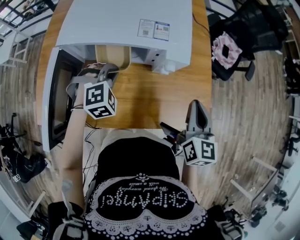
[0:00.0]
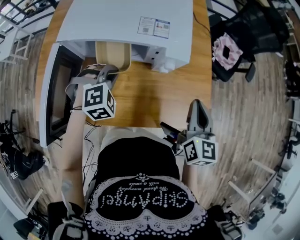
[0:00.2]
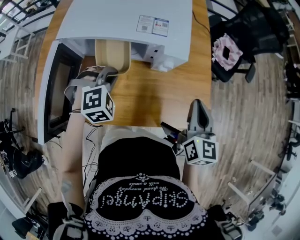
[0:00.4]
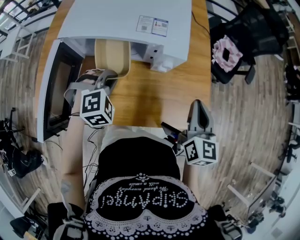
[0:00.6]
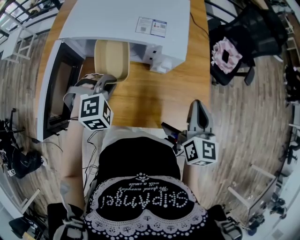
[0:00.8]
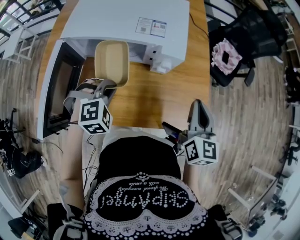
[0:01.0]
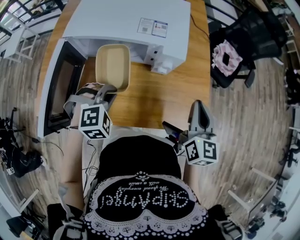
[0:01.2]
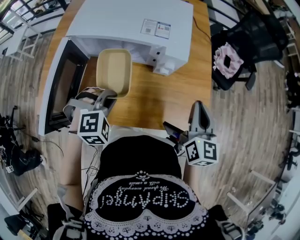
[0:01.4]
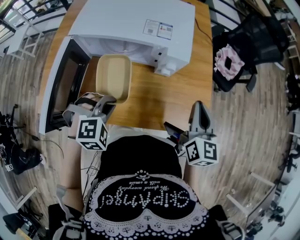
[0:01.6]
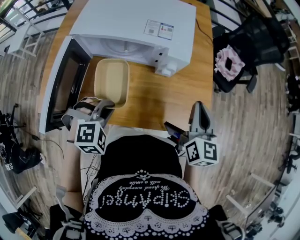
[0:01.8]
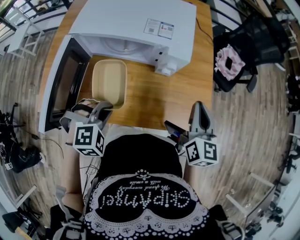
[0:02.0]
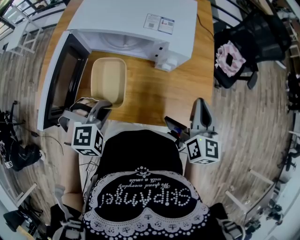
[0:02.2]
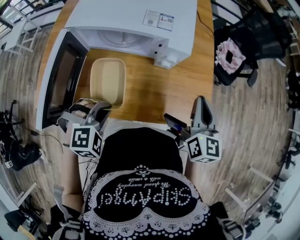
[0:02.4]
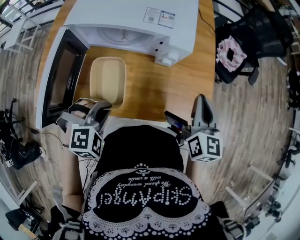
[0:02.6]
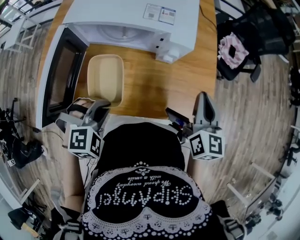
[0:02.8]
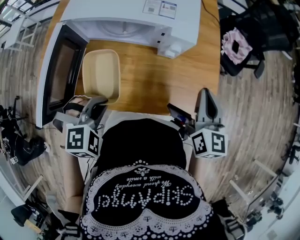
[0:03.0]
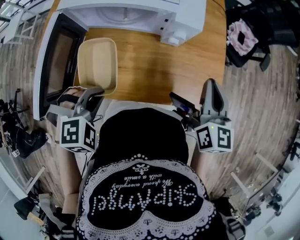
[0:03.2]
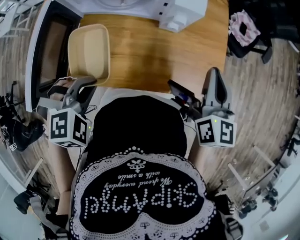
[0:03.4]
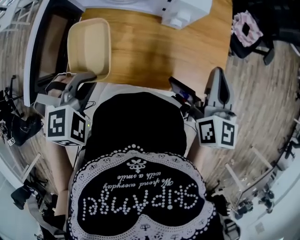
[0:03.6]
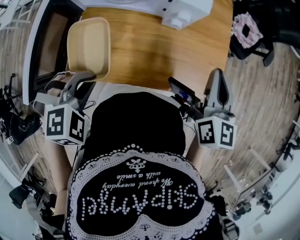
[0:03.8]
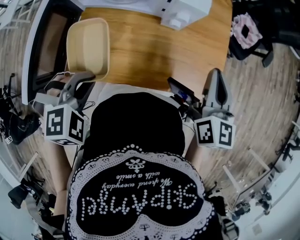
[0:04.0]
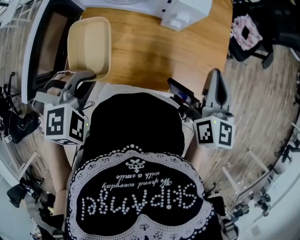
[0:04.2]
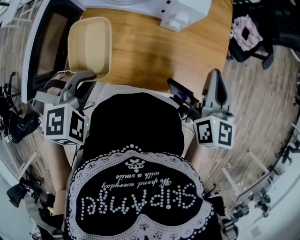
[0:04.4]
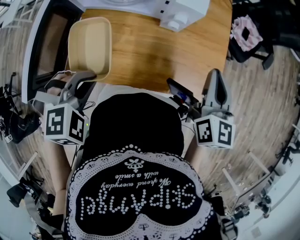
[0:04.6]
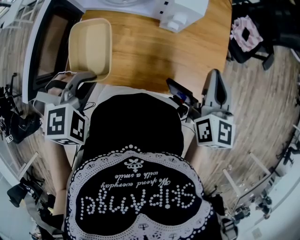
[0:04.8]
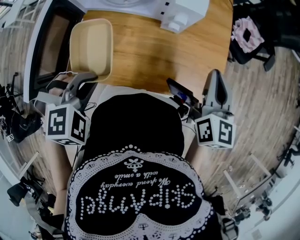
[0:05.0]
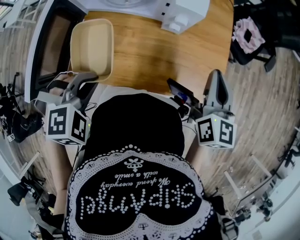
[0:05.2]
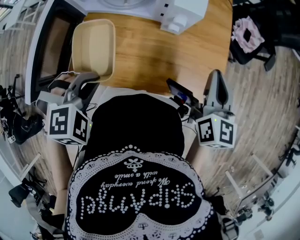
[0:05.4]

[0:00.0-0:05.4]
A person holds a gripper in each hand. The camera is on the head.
0:00.0 to 0:01.4: The left gripper travels backward by approximately 10 cm.
0:01.4 to 0:02.8: The left gripper moves backward, about 5 cm.
0:02.8 to 0:05.4: The grippers make only small movements.

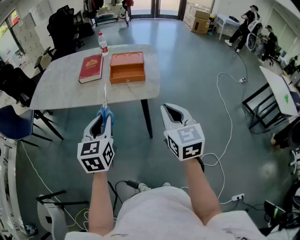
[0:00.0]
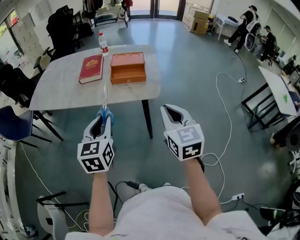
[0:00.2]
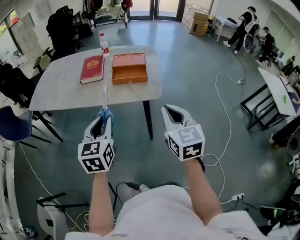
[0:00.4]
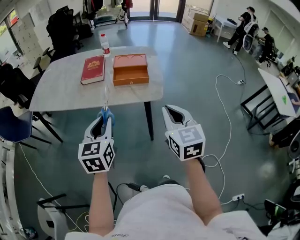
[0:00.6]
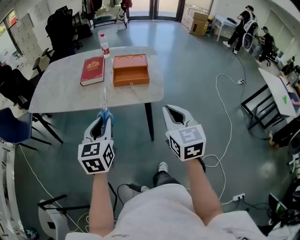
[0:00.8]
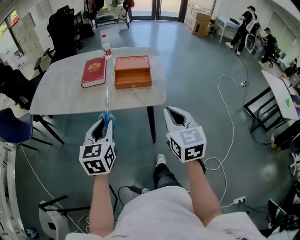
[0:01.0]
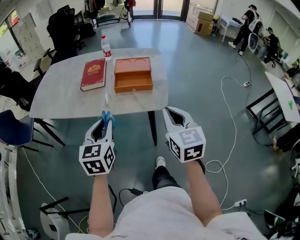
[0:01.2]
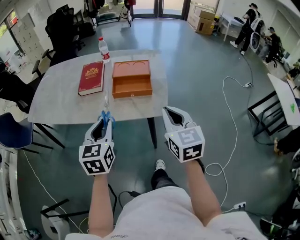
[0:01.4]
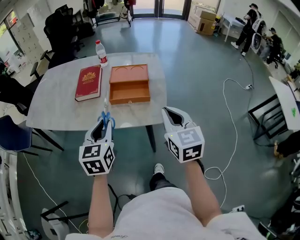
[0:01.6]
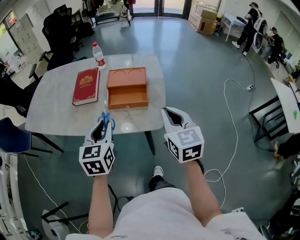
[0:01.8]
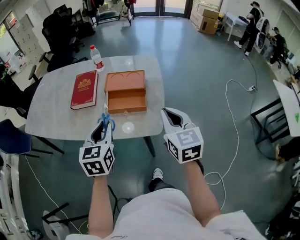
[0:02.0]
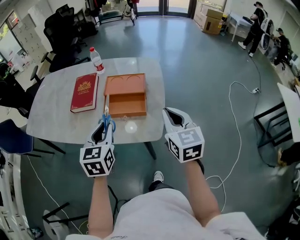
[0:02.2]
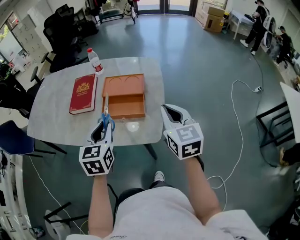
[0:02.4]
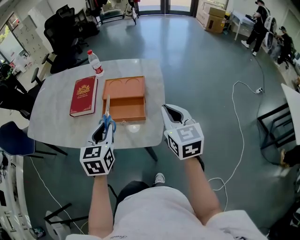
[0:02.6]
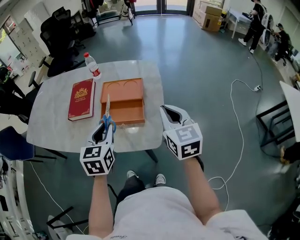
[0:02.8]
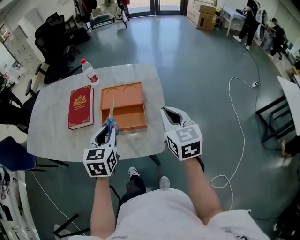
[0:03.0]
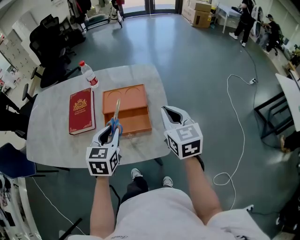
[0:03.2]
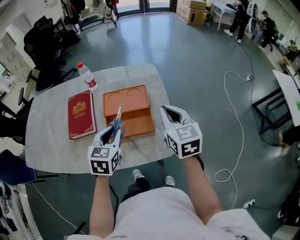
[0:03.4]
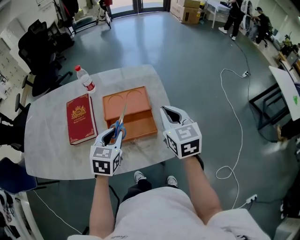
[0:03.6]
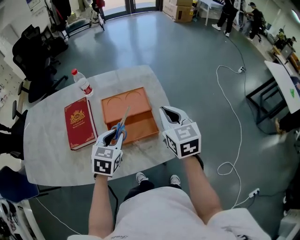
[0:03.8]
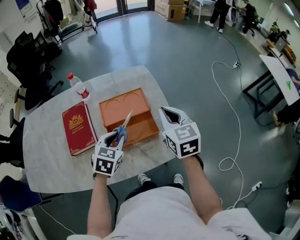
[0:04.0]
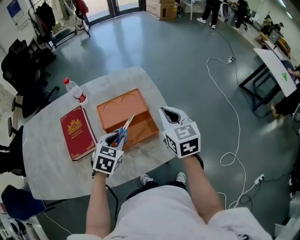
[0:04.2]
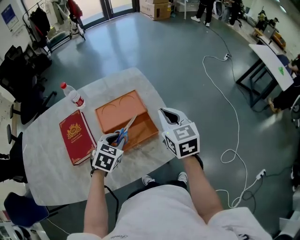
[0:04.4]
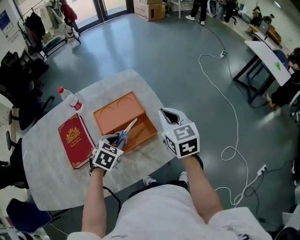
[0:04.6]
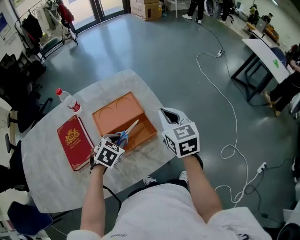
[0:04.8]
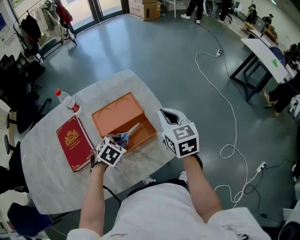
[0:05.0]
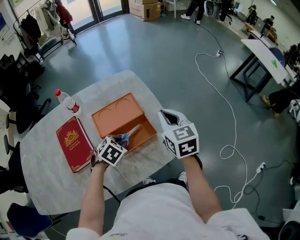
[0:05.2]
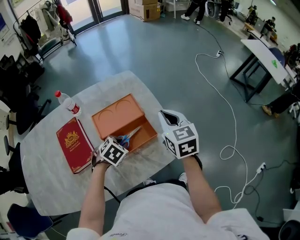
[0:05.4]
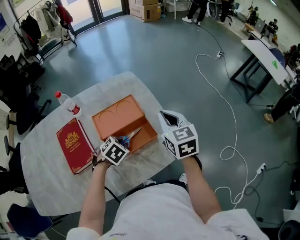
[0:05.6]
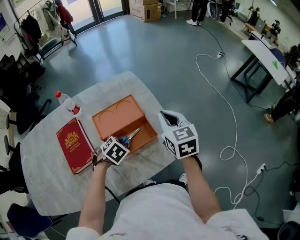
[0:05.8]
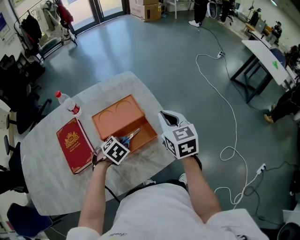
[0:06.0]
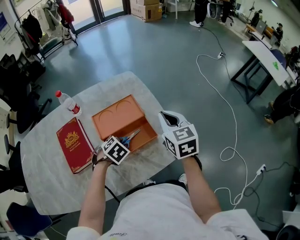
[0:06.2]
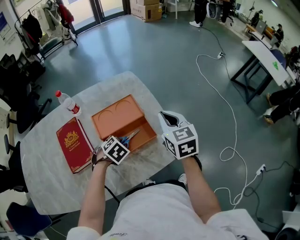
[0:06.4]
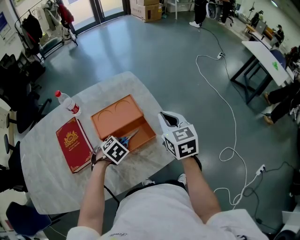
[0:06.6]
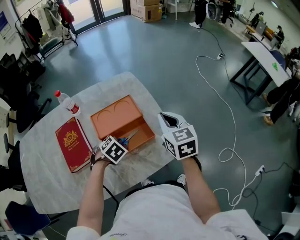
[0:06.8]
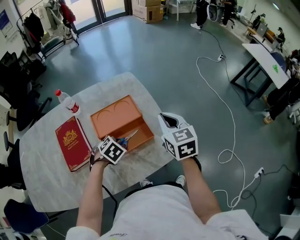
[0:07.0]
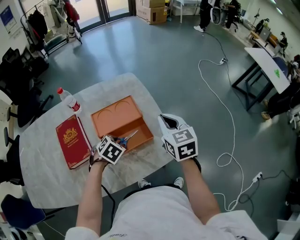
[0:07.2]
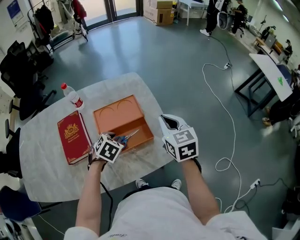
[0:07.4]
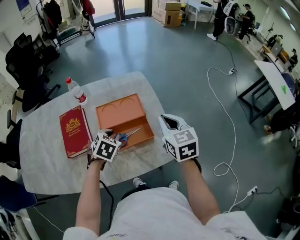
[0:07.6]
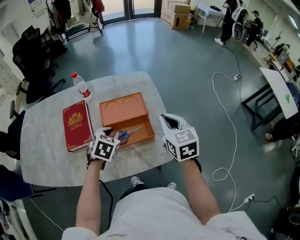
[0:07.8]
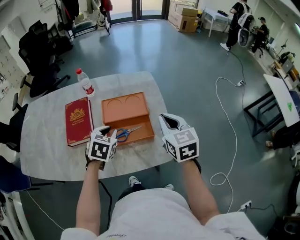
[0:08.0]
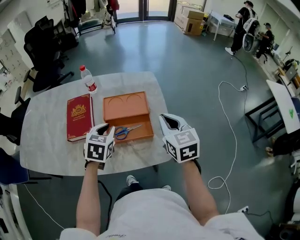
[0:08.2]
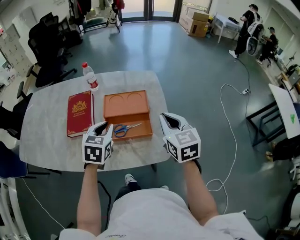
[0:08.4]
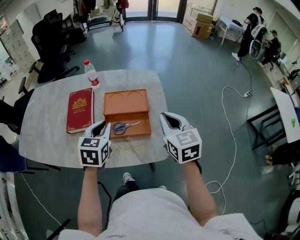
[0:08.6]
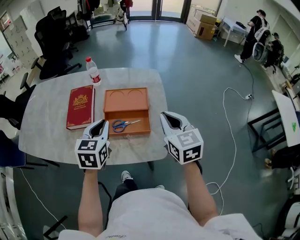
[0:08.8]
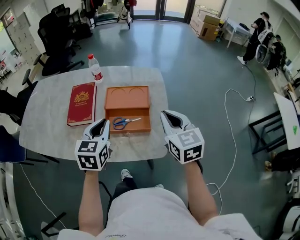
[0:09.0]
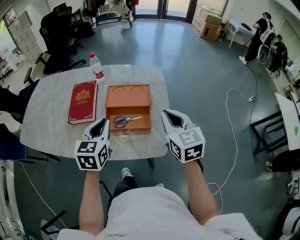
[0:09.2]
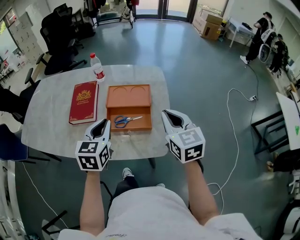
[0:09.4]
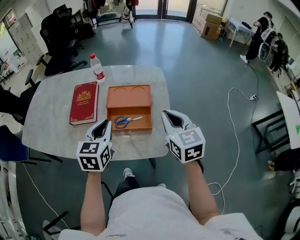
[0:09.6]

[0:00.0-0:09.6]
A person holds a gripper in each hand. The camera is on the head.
0:00.0 to 0:01.6: The grippers both shift forward by approximately 15 cm.
0:01.6 to 0:03.2: The grippers both shift forward by approximately 20 cm.
0:03.2 to 0:04.8: The left gripper travels downward by approximately 10 cm, and swivels some 50 degrees. Meanwhile the right gripper swivels approximately 20 degrees.
0:04.8 to 0:06.4: The grippers move only a little.
0:06.4 to 0:08.0: The left gripper is displaced upward by some 10 cm, and turns by about 50 degrees.
0:08.0 to 0:09.6: The left gripper goes about 10 cm upward and backward, and changes its angle by roughly 30 degrees.

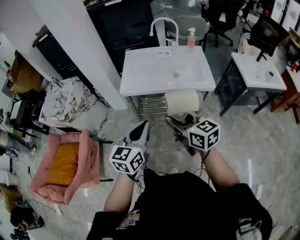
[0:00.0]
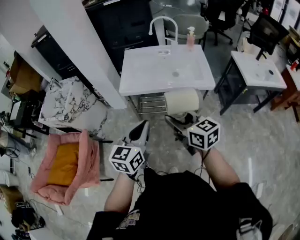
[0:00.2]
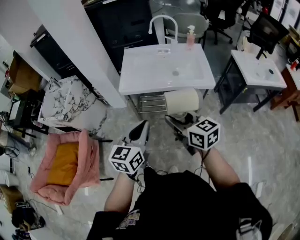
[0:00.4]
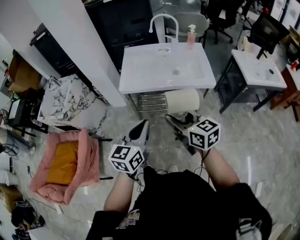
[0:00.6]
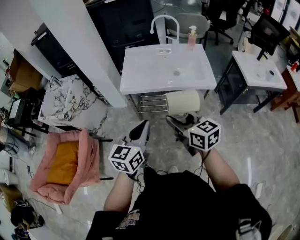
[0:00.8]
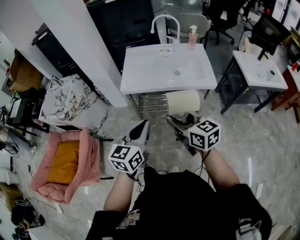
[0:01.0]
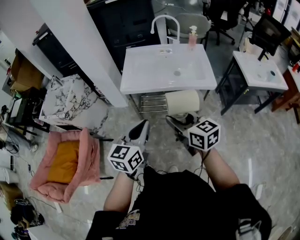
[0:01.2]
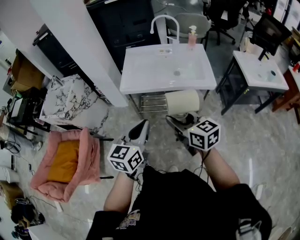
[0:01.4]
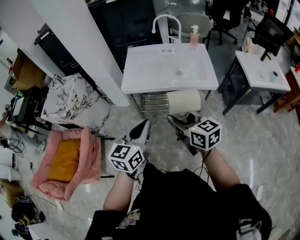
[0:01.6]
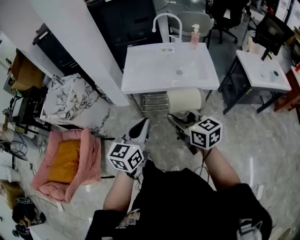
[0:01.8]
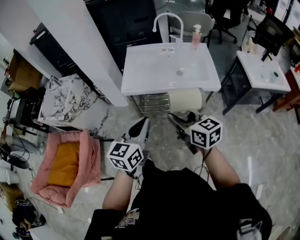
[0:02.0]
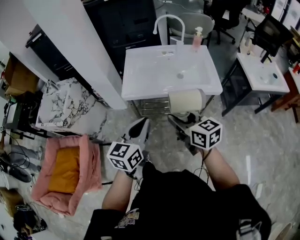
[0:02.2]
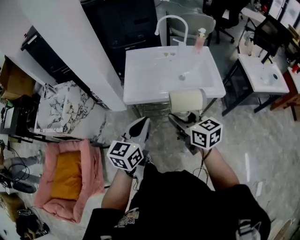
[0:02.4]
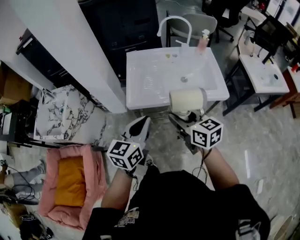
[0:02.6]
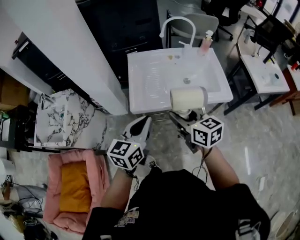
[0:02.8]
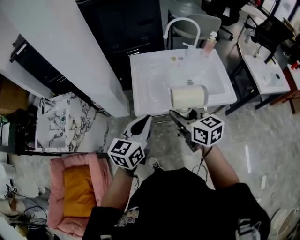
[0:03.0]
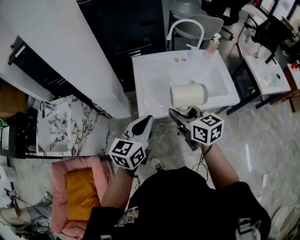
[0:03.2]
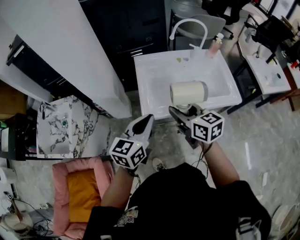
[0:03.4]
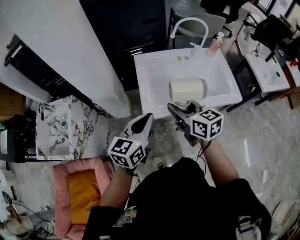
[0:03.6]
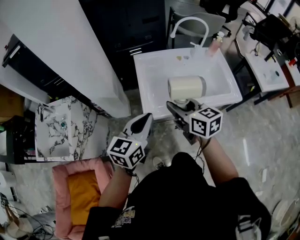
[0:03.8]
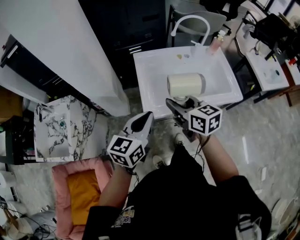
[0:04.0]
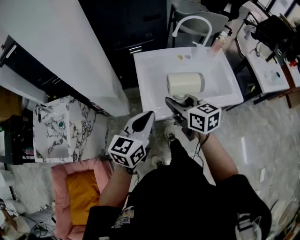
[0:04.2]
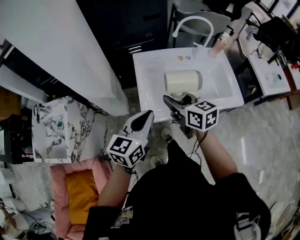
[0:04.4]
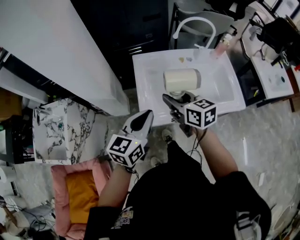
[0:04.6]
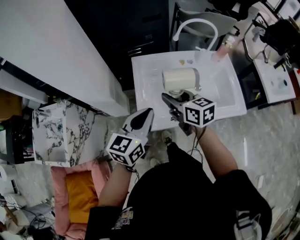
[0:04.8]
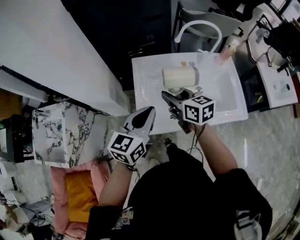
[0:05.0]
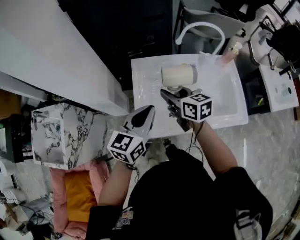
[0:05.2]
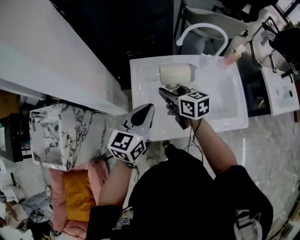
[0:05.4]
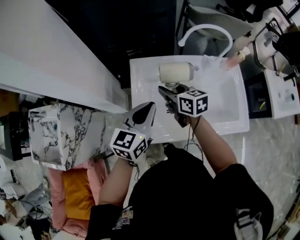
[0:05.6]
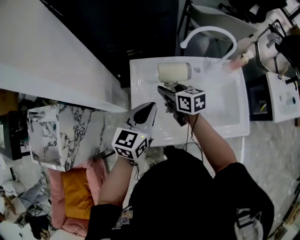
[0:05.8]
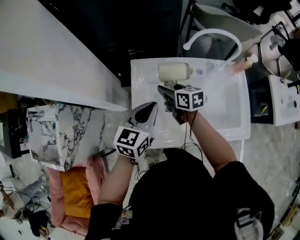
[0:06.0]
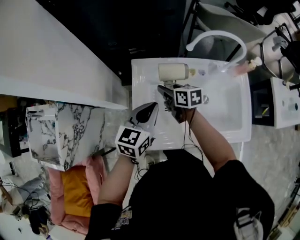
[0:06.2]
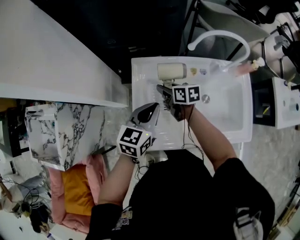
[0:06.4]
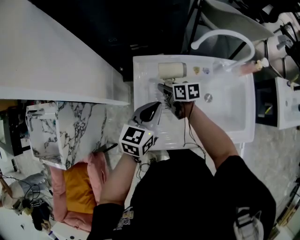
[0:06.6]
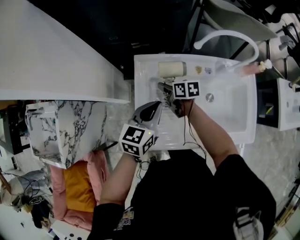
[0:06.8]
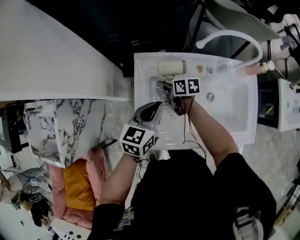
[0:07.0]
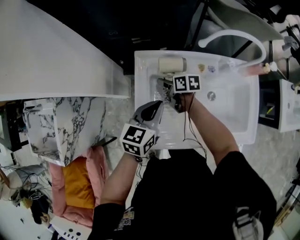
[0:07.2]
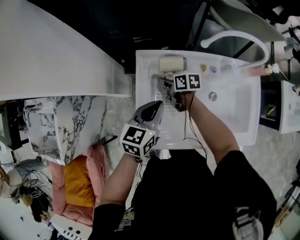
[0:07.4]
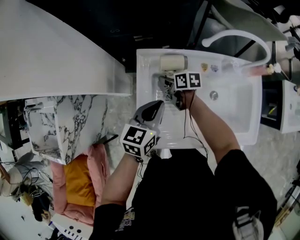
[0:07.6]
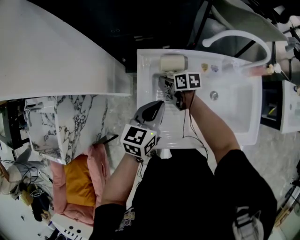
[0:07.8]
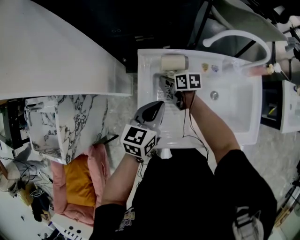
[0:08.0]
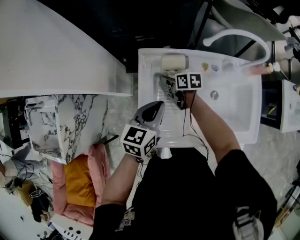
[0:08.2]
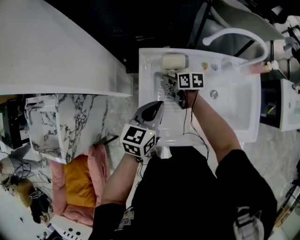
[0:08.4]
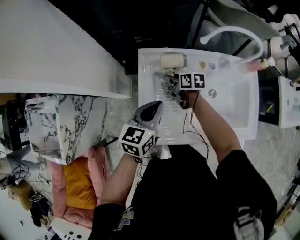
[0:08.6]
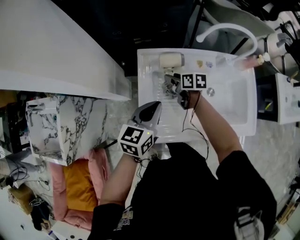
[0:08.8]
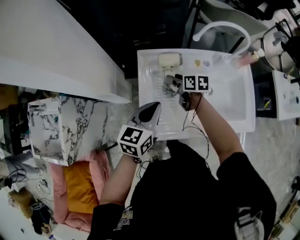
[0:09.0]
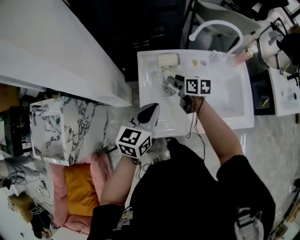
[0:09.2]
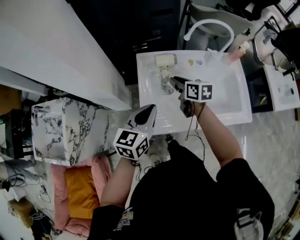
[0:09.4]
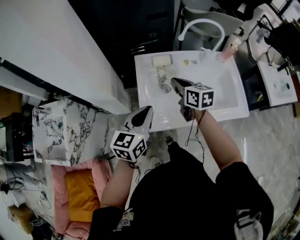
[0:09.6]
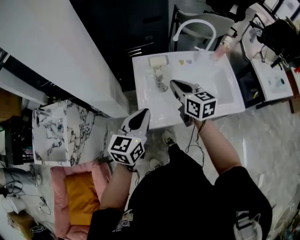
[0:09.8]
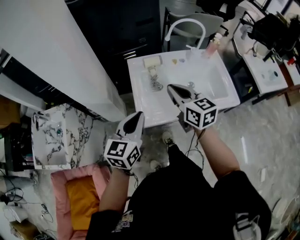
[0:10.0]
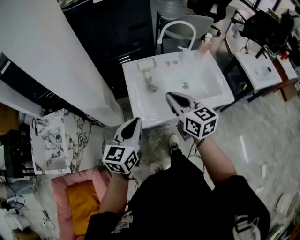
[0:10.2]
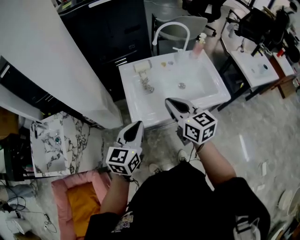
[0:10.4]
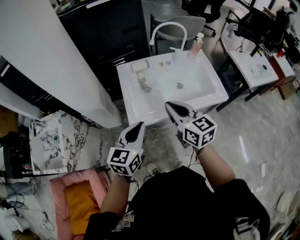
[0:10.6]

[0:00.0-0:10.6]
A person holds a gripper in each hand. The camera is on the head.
0:00.0 to 0:01.6: The grippers stay close to where they were, moving slightly.
0:01.6 to 0:03.0: The grippers both shift forward and to the left by about 30 cm.
0:03.0 to 0:04.6: The left gripper moves forward, approximately 15 cm; the right gripper goes about 20 cm forward and to the left.
0:04.6 to 0:06.0: The right gripper travels forward and downward by about 25 cm. Meanwhile the left gripper shifts approximately 20 cm forward.
0:06.0 to 0:07.6: The right gripper travels downward and forward by approximately 15 cm, and changes its angle by approximately 20 degrees. Meanwhile the left gripper is displaced downward by roughly 5 cm.
0:07.6 to 0:09.0: The right gripper goes approximately 10 cm upward. The left gripper heads backward, covering some 5 cm.
0:09.0 to 0:10.6: The left gripper travels backward by about 25 cm. The right gripper heads backward and upward, covering roughly 40 cm, rotates about 40 degrees, and closes up.
